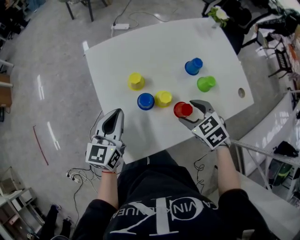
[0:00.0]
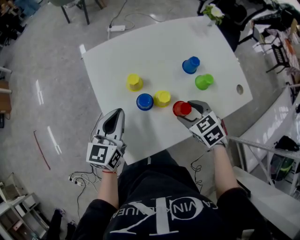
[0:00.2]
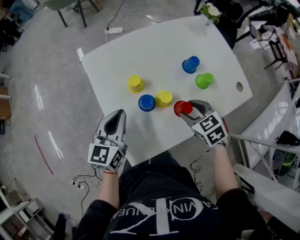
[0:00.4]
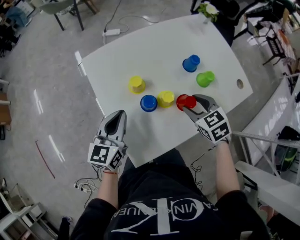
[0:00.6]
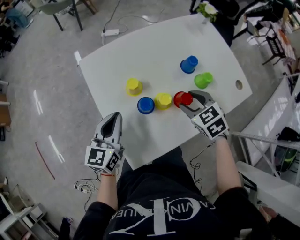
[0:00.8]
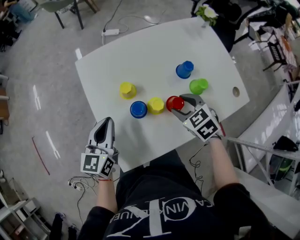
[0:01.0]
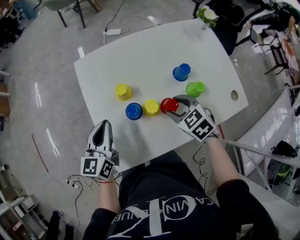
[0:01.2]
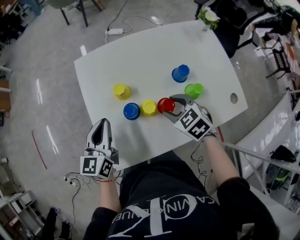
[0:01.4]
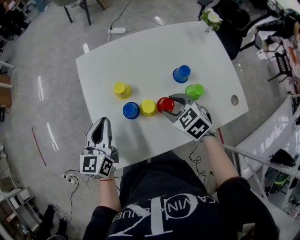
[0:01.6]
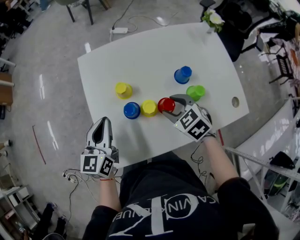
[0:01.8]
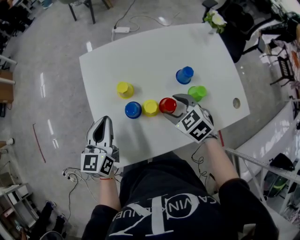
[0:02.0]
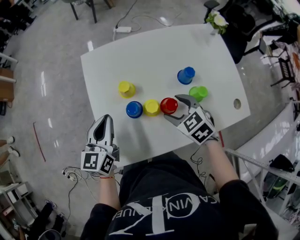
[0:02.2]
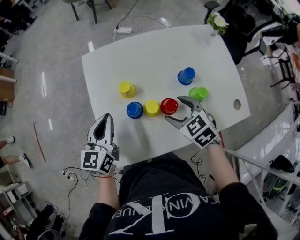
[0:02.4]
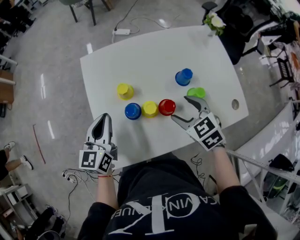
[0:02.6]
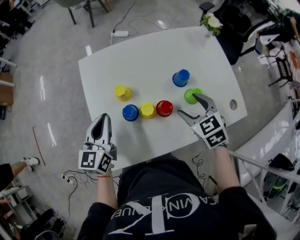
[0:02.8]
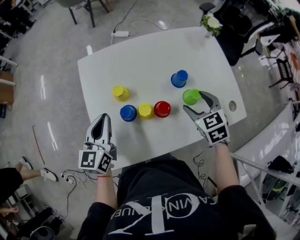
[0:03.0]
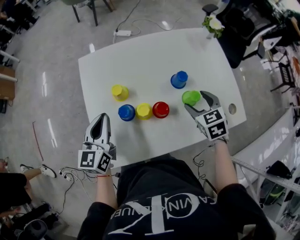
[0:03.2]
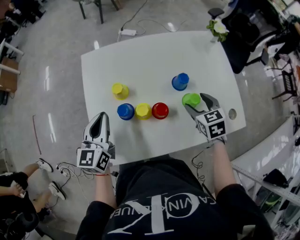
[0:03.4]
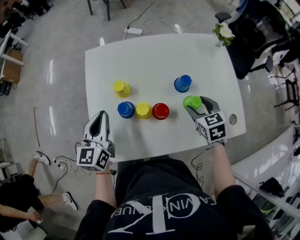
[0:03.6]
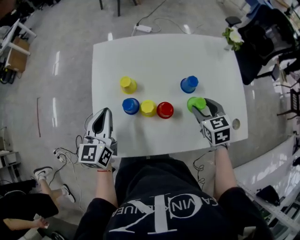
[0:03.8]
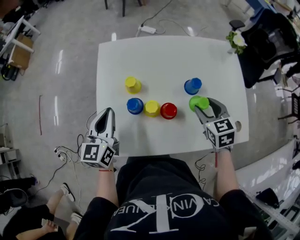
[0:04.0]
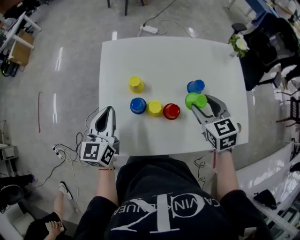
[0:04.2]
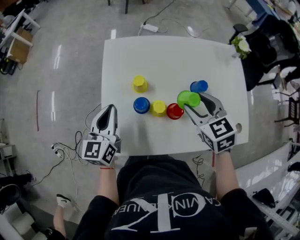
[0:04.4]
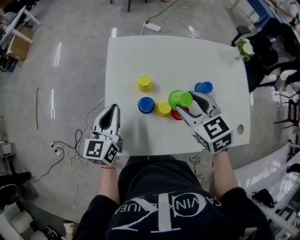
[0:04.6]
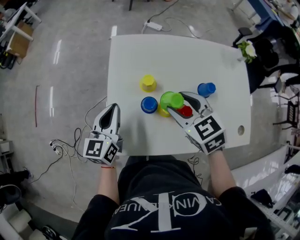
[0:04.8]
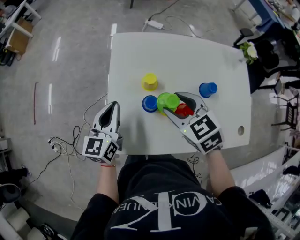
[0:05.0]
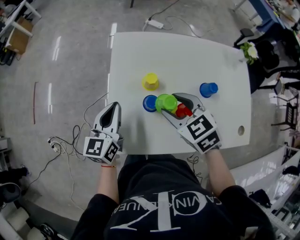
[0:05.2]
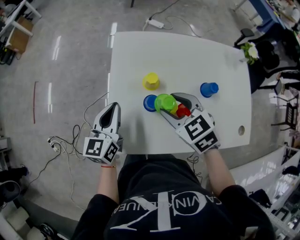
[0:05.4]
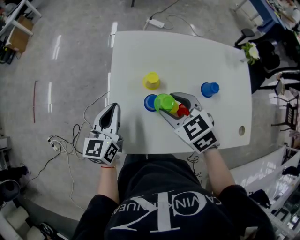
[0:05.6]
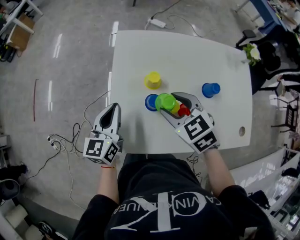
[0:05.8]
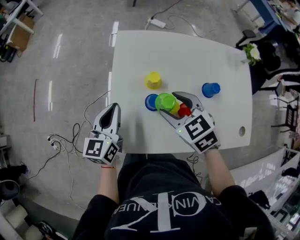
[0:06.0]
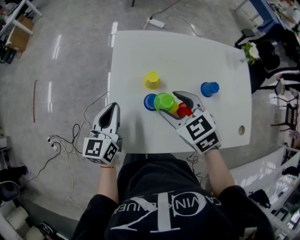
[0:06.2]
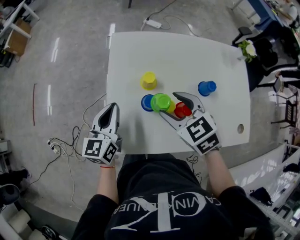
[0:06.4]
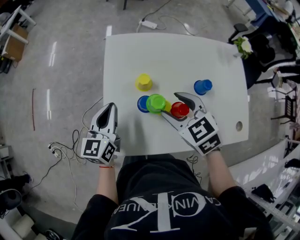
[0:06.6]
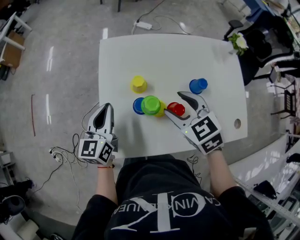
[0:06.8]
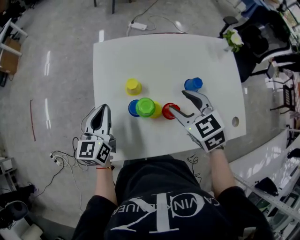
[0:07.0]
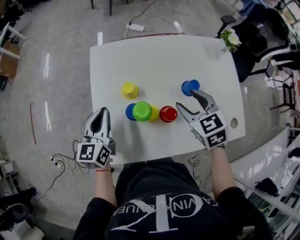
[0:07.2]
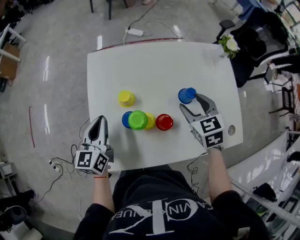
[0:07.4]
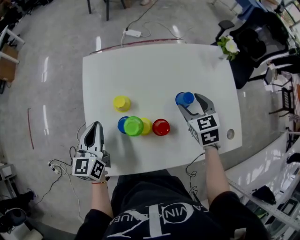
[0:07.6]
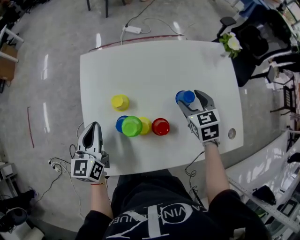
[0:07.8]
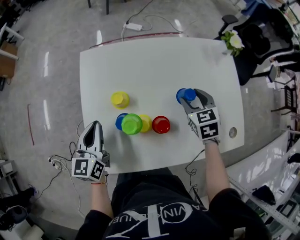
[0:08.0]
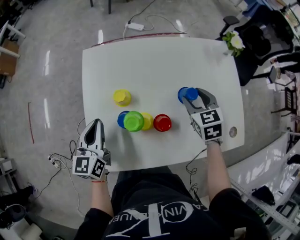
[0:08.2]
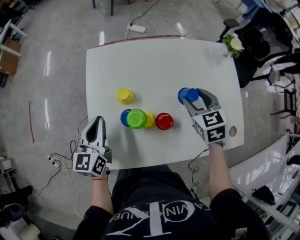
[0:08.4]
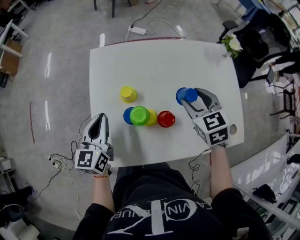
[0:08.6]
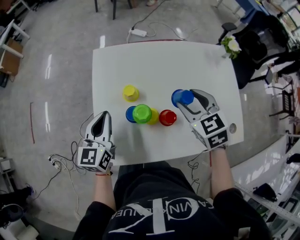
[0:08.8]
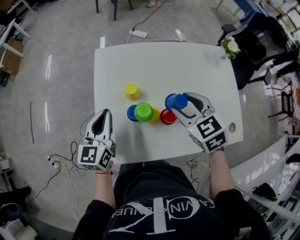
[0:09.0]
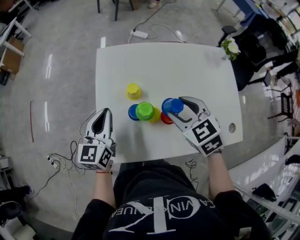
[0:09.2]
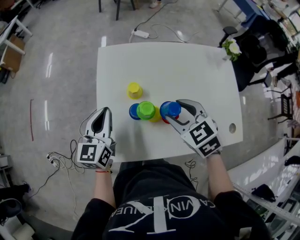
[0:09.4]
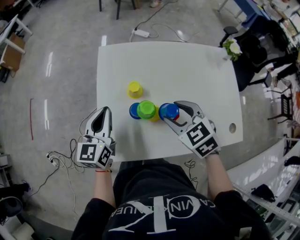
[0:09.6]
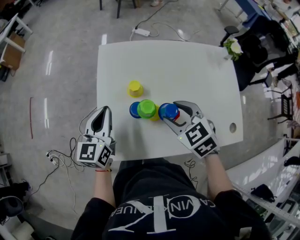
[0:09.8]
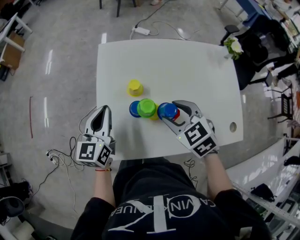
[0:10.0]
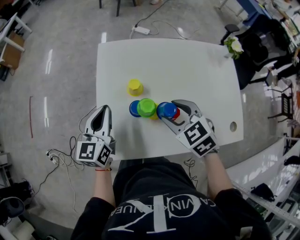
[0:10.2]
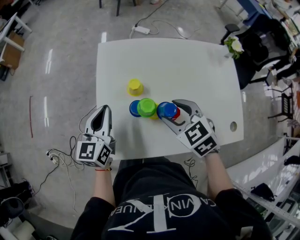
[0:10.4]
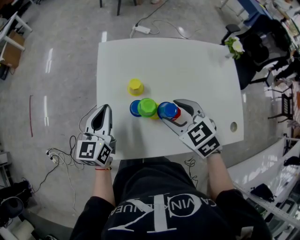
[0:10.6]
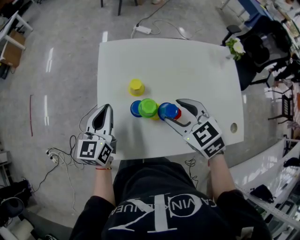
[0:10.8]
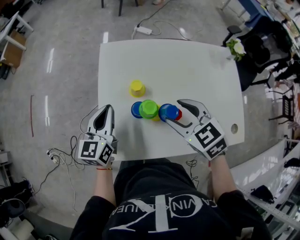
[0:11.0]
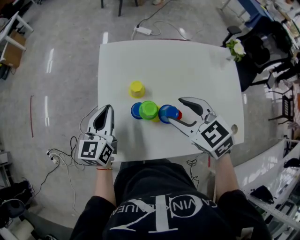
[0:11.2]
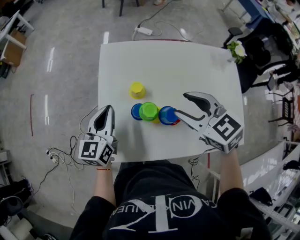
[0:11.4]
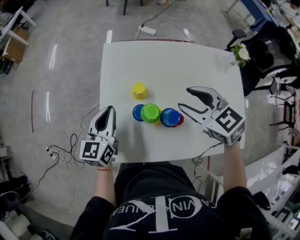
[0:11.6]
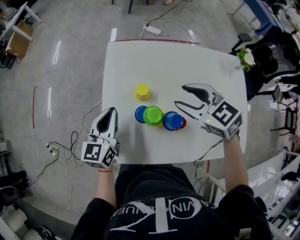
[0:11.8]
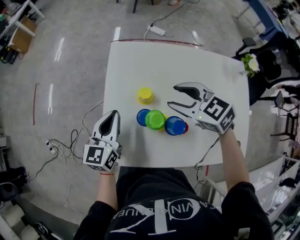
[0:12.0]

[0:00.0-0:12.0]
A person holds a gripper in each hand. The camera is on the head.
0:00.0 to 0:01.6: The right gripper is displaced forward by approximately 5 cm.
0:01.6 to 0:03.0: The right gripper is displaced to the right by some 10 cm.
0:03.0 to 0:04.4: The right gripper heads to the left and upward, covering some 10 cm.
0:04.4 to 0:06.0: The right gripper heads to the left, covering some 15 cm.
0:06.0 to 0:07.6: The right gripper moves to the right, some 25 cm, and rotates roughly 30 degrees; the left gripper heads to the right, covering approximately 5 cm.
0:07.6 to 0:09.0: The right gripper heads to the left, upward and backward, covering approximately 15 cm.
0:09.0 to 0:10.4: The right gripper moves to the left, approximately 5 cm.
0:10.4 to 0:12.0: The right gripper travels forward by roughly 10 cm, and rotates roughly 20 degrees.

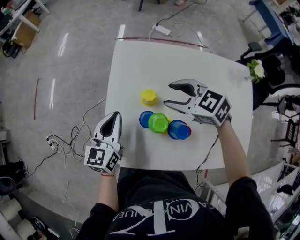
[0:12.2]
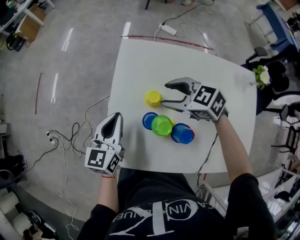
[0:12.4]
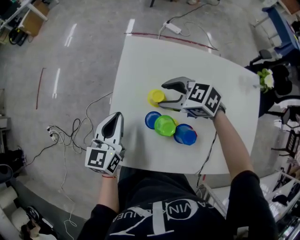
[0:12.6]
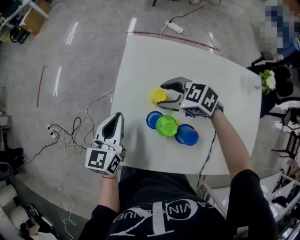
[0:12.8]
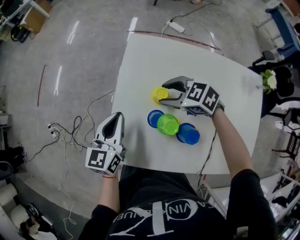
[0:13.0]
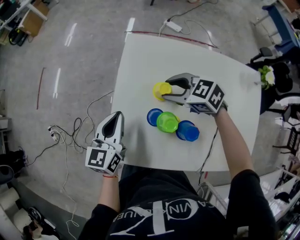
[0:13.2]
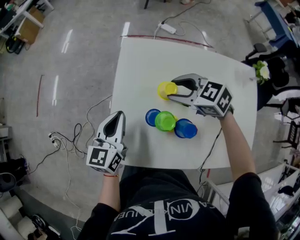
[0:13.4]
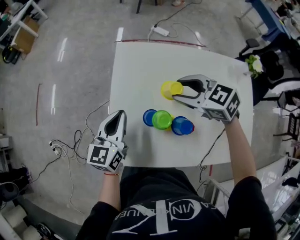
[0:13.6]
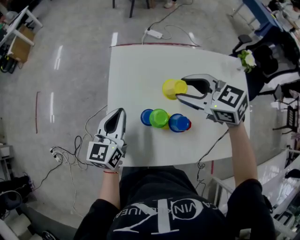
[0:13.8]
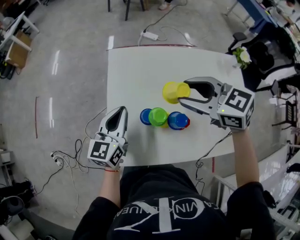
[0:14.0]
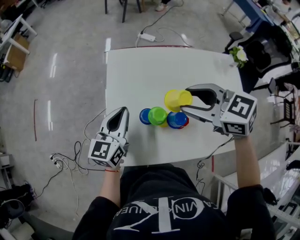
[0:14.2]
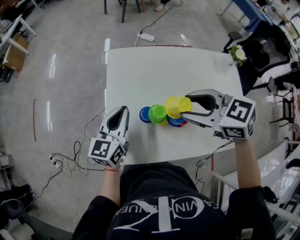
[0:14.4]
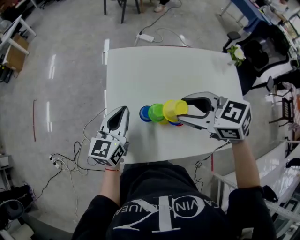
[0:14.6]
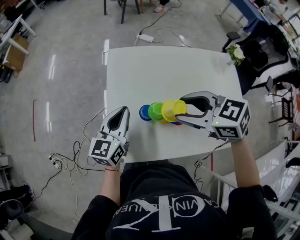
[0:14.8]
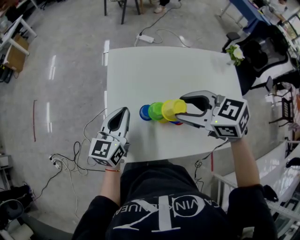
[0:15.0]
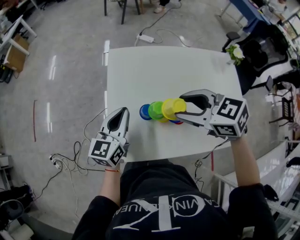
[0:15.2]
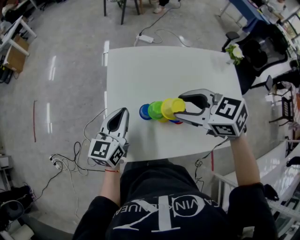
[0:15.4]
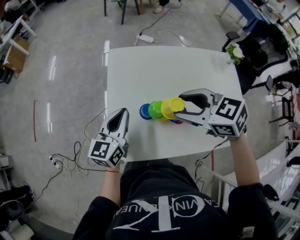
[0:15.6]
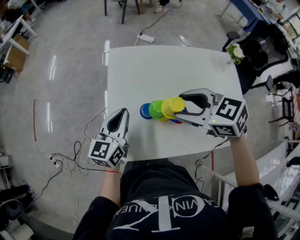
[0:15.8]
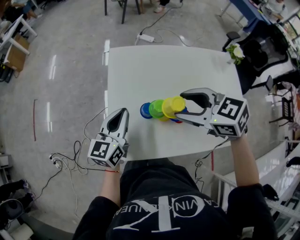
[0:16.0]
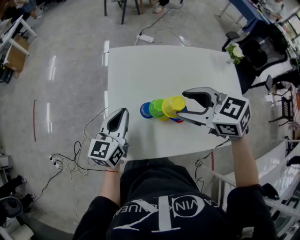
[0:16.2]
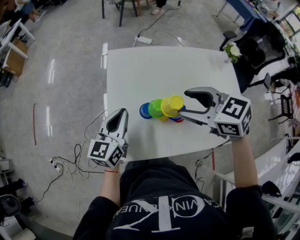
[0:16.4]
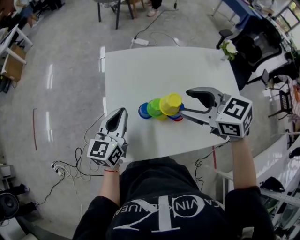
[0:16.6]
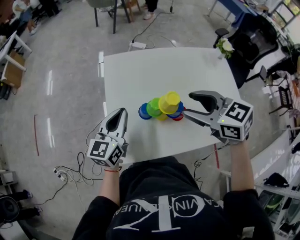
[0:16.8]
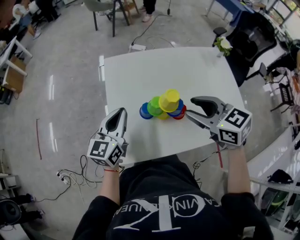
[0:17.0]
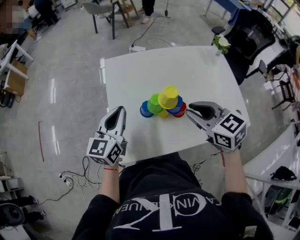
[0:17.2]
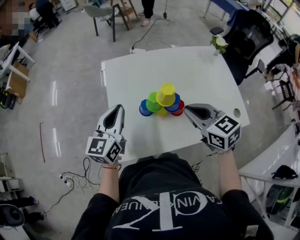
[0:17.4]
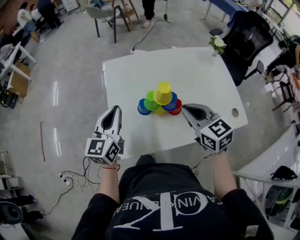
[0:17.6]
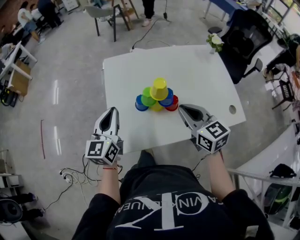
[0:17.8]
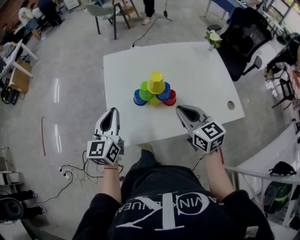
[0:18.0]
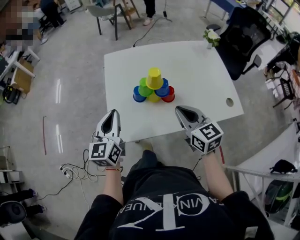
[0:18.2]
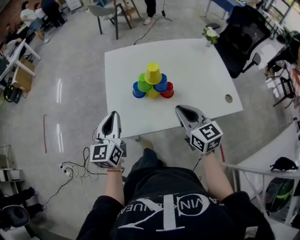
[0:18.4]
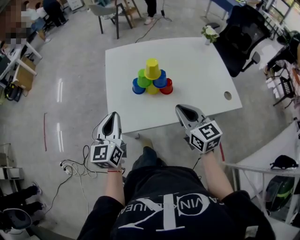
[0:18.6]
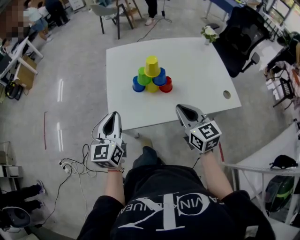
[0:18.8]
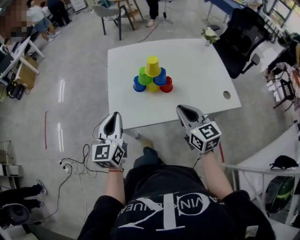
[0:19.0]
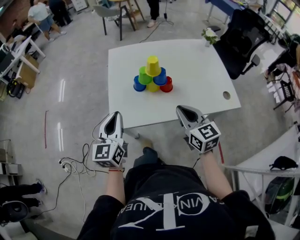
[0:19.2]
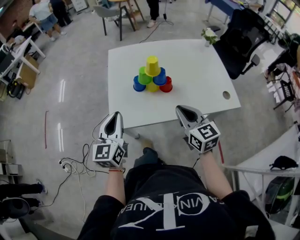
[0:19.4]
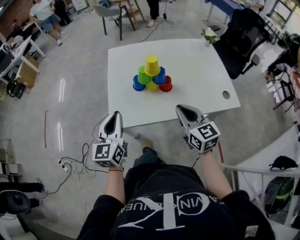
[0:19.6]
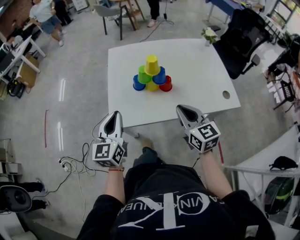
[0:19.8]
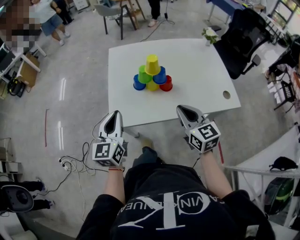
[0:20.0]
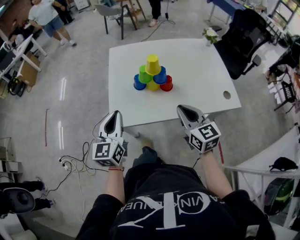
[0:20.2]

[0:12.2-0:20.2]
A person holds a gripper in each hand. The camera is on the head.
0:12.2 to 0:13.8: The right gripper is displaced upward by some 5 cm.
0:13.8 to 0:15.4: The right gripper heads backward, covering roughly 10 cm.
0:15.4 to 0:17.0: The right gripper ends up approximately 5 cm from where it was, and changes its angle by roughly 20 degrees.
0:17.0 to 0:18.6: The grippers both shift backward by approximately 15 cm. The right gripper swivels some 20 degrees, and closes its fingers.
0:18.6 to 0:20.2: The grippers stay close to where they were, moving slightly.

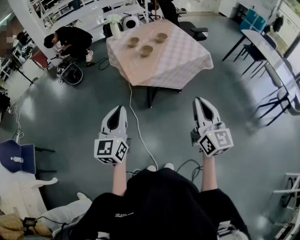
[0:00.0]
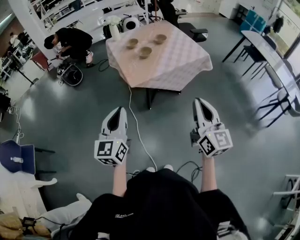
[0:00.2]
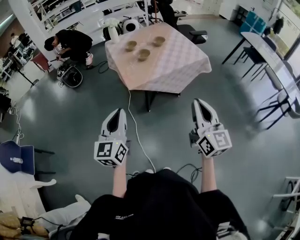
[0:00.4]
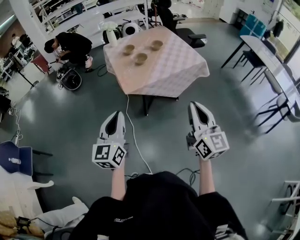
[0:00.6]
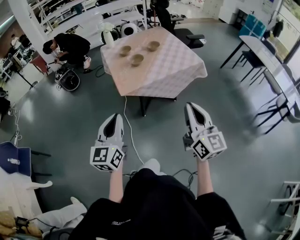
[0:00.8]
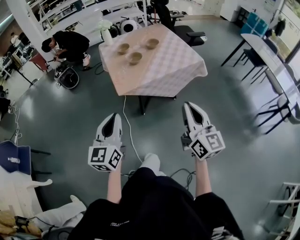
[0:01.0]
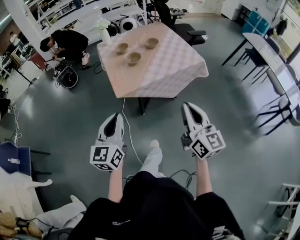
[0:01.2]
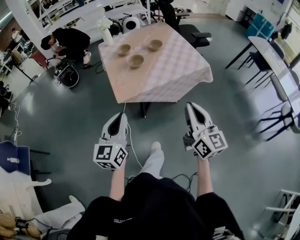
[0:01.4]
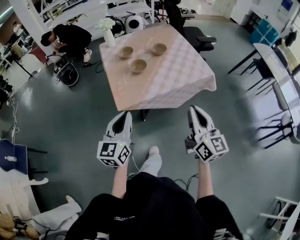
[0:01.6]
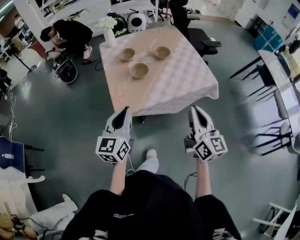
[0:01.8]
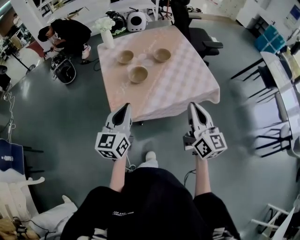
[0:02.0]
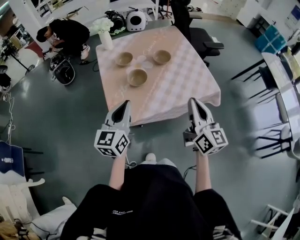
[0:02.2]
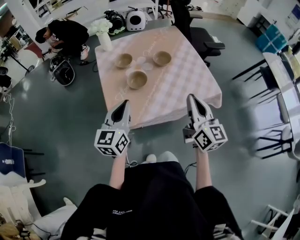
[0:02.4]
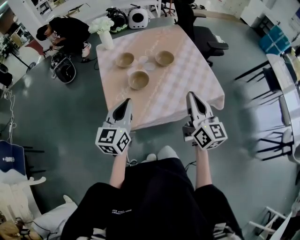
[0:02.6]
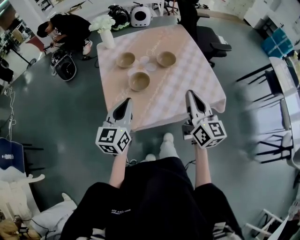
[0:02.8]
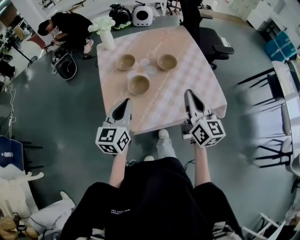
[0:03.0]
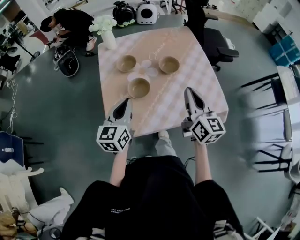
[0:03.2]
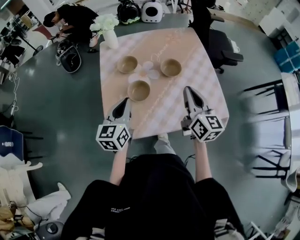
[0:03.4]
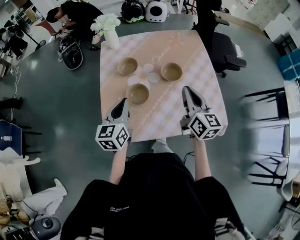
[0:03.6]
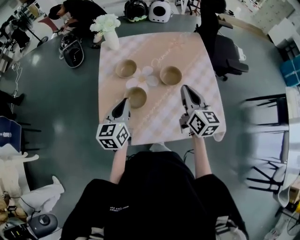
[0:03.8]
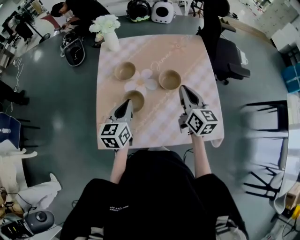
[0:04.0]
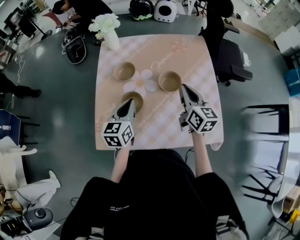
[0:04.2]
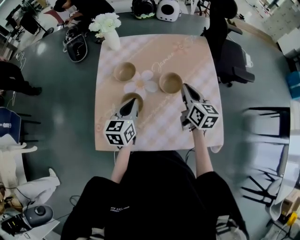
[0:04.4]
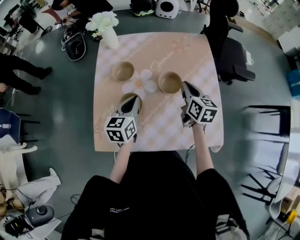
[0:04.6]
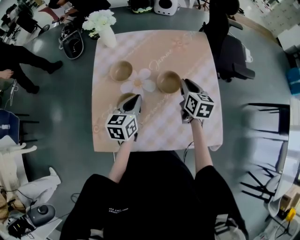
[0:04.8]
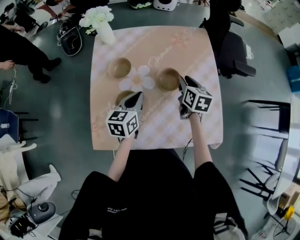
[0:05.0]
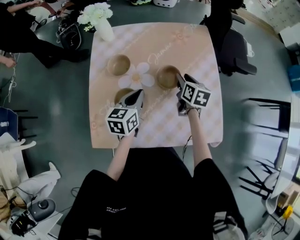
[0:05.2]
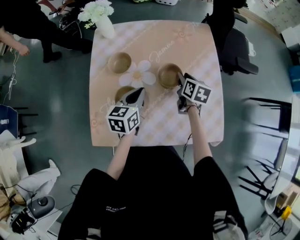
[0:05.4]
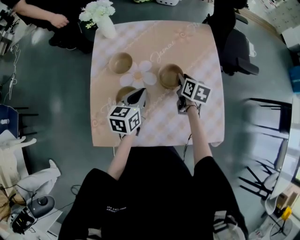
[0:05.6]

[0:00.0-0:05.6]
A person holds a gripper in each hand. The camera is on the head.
0:00.0 to 0:01.4: The two grippers go approximately 15 cm forward and to the right.
0:01.4 to 0:02.8: The two grippers go some 30 cm forward.
0:02.8 to 0:04.2: The left gripper travels forward and downward by approximately 20 cm, and swivels about 20 degrees. The right gripper is displaced forward by roughly 25 cm, and turns by approximately 20 degrees.
0:04.2 to 0:05.6: The right gripper shifts about 15 cm downward and forward, swivels approximately 30 degrees, and opens up; the left gripper travels to the right by roughly 5 cm.
